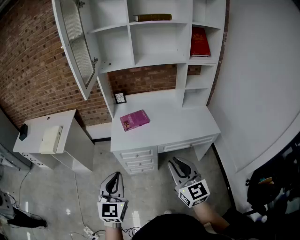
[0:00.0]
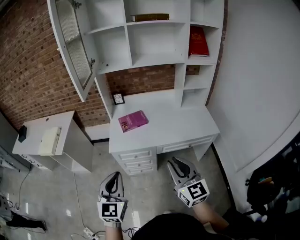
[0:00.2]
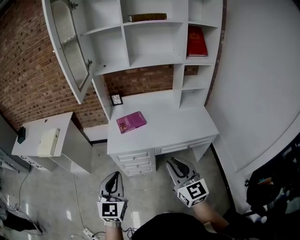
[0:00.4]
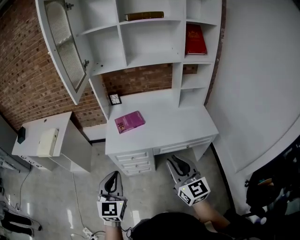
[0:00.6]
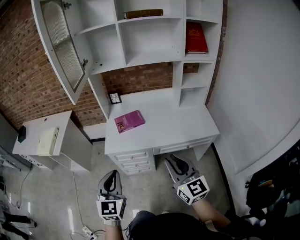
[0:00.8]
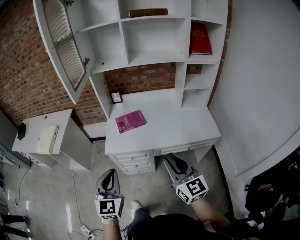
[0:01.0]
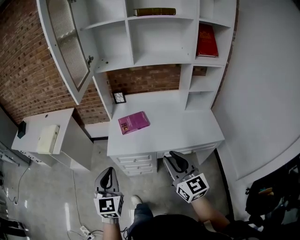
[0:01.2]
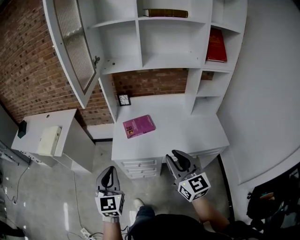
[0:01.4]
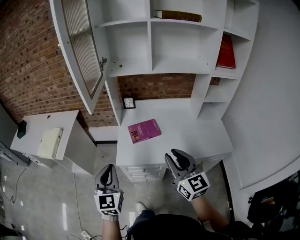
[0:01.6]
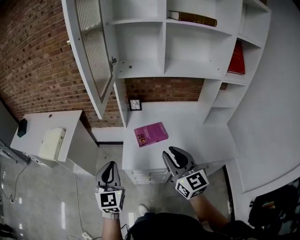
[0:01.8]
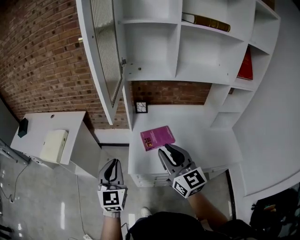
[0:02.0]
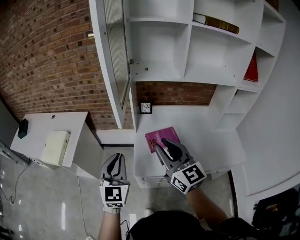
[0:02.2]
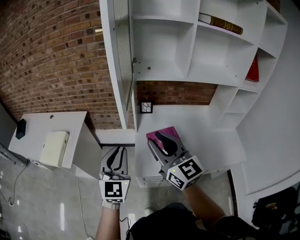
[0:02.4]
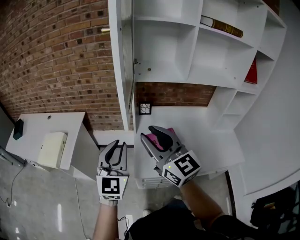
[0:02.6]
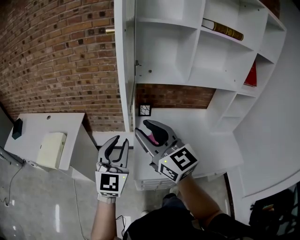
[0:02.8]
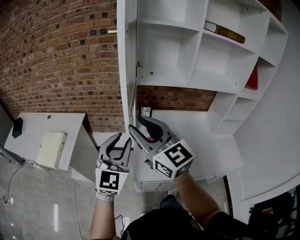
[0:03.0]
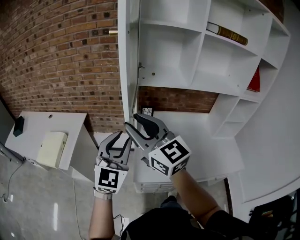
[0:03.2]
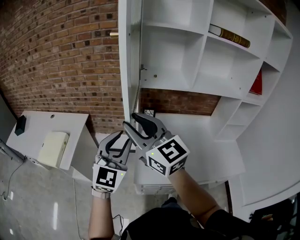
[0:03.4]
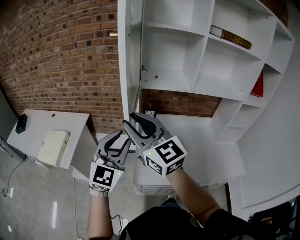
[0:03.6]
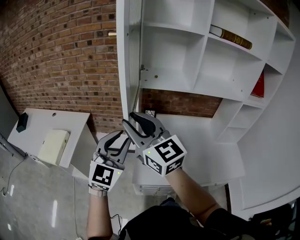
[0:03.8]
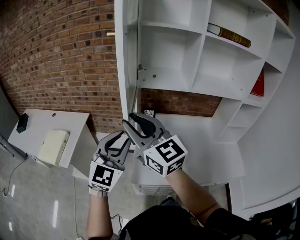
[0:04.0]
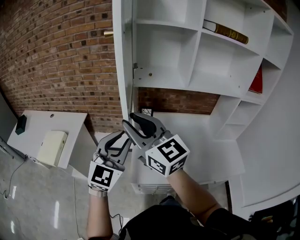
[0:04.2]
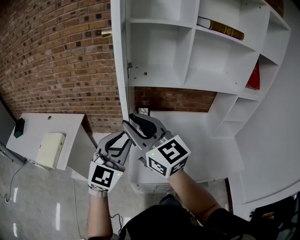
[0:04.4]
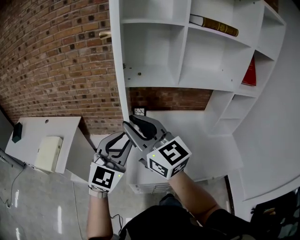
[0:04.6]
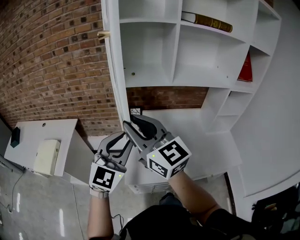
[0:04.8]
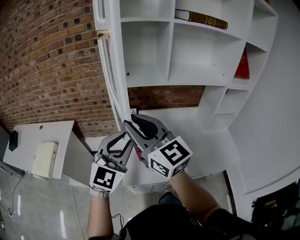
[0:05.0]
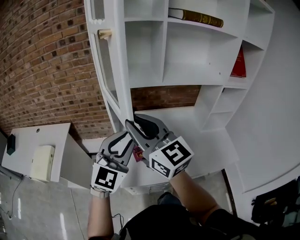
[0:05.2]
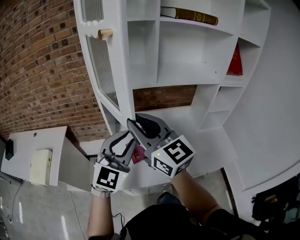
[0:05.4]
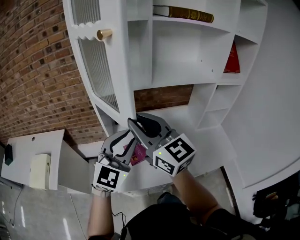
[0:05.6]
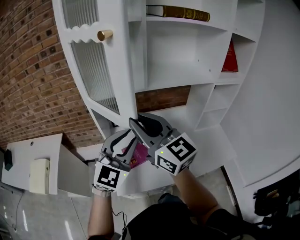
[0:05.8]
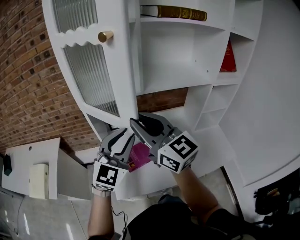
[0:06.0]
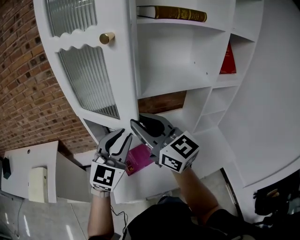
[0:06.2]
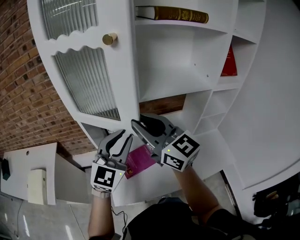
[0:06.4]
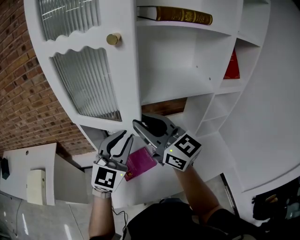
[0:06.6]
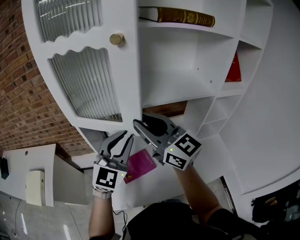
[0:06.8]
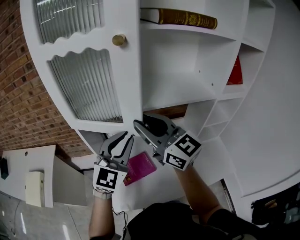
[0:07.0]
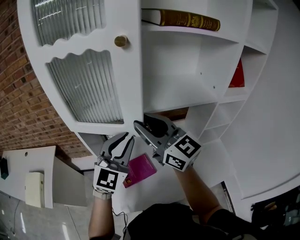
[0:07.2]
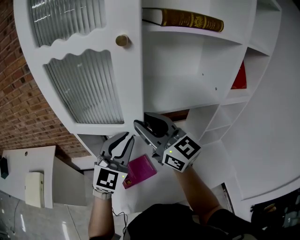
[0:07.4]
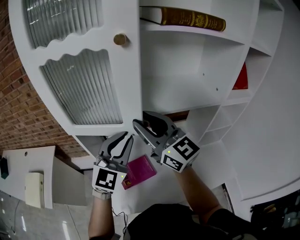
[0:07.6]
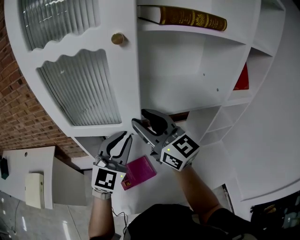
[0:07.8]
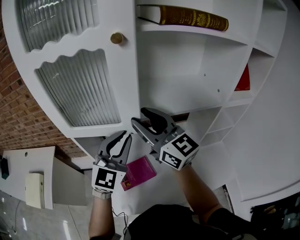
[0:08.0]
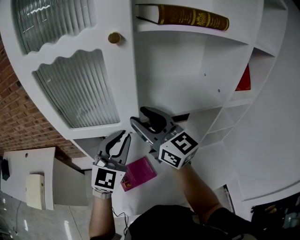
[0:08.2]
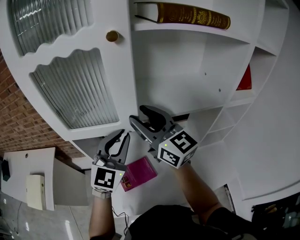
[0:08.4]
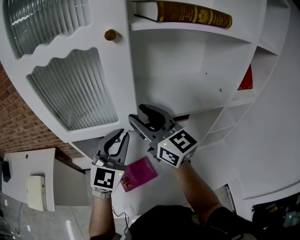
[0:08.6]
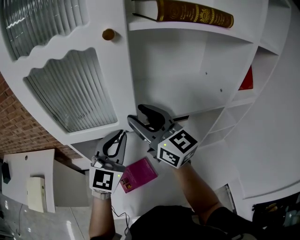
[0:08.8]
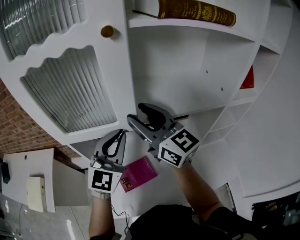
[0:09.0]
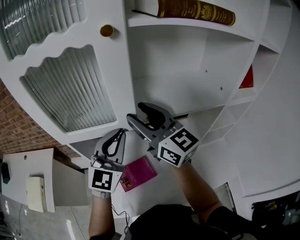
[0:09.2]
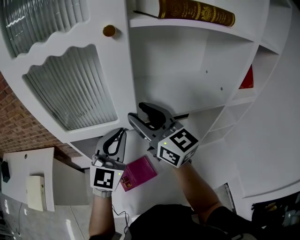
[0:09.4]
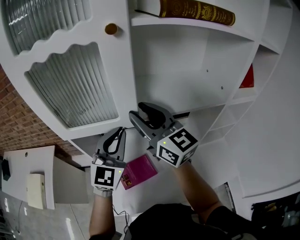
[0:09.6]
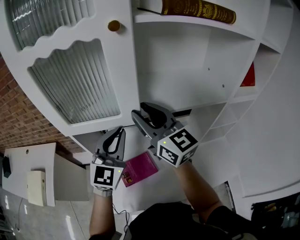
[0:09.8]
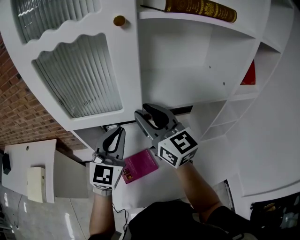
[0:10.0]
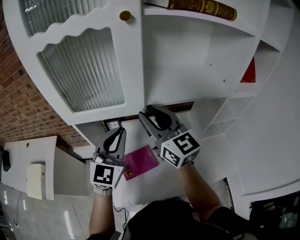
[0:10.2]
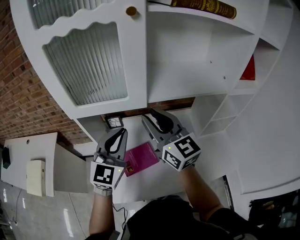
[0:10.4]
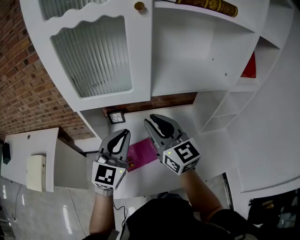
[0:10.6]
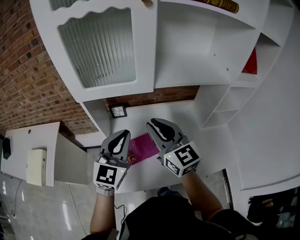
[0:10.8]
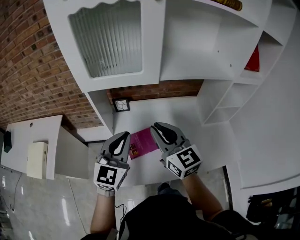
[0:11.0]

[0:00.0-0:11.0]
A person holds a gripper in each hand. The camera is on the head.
0:00.0 to 0:01.6: Both grippers move forward, some 20 cm.
0:01.6 to 0:03.2: The right gripper shifts about 40 cm to the left, forward and upward, and changes its angle by about 20 degrees. Meanwhile the left gripper is displaced forward and upward by approximately 25 cm, rotates approximately 20 degrees, and opens its fingers.
0:03.2 to 0:04.8: The two grippers go about 10 cm to the right.
0:04.8 to 0:06.2: The left gripper goes approximately 15 cm forward and to the right. The right gripper shifts about 20 cm to the right and forward.
0:06.2 to 0:07.8: The left gripper moves forward, about 10 cm; the right gripper is displaced forward and to the right by about 15 cm.
0:07.8 to 0:09.4: There are only small adjustments of the grippers.
0:09.4 to 0:11.0: The right gripper moves backward and downward, approximately 20 cm, and closes. The left gripper shifts about 20 cm backward, downward and to the left.

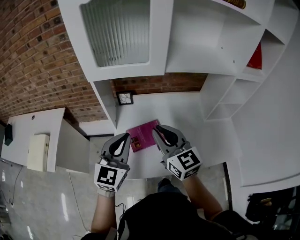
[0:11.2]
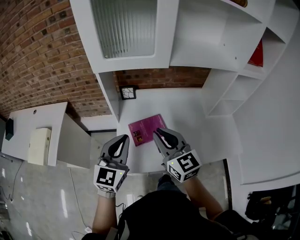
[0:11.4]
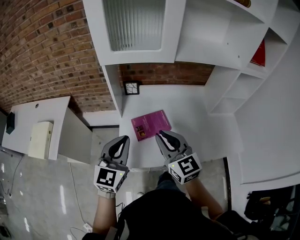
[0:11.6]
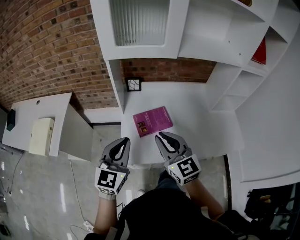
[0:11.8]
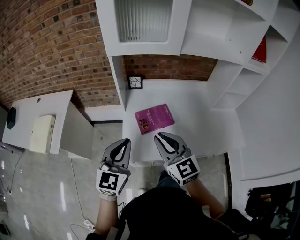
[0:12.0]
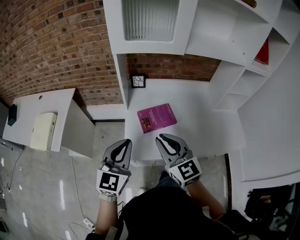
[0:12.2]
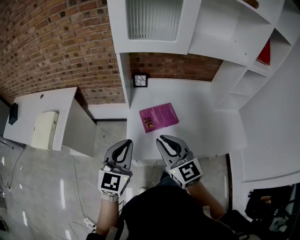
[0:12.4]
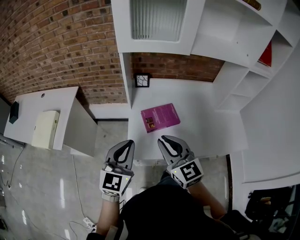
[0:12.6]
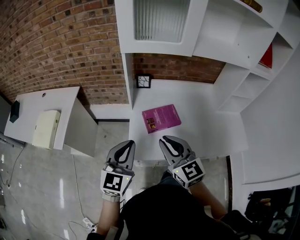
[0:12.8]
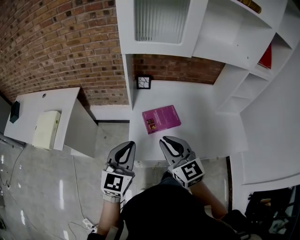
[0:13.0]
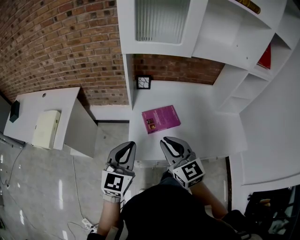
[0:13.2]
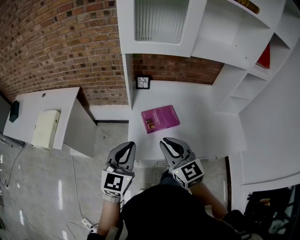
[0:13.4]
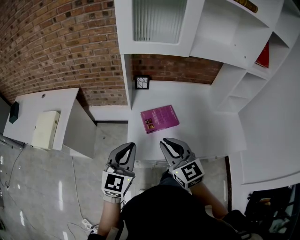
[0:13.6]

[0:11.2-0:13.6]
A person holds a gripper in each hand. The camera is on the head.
0:11.2 to 0:12.4: The grippers both shift backward, to the left and downward by about 15 cm.
0:12.4 to 0:13.6: The grippers make only small movements.

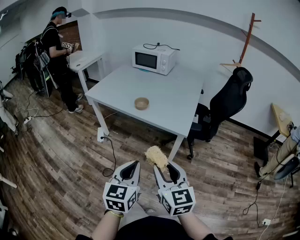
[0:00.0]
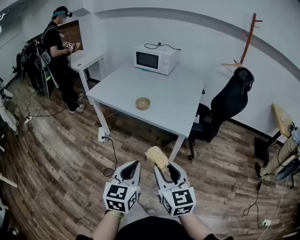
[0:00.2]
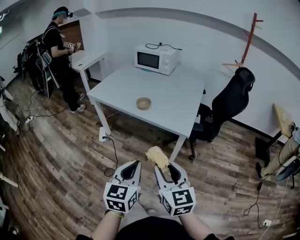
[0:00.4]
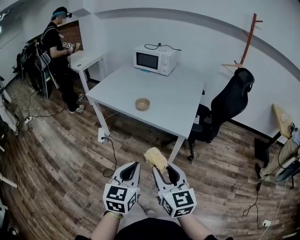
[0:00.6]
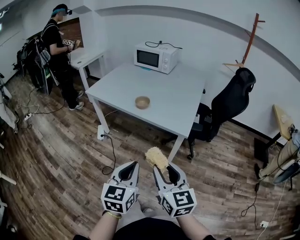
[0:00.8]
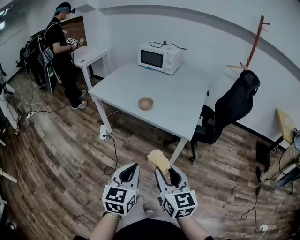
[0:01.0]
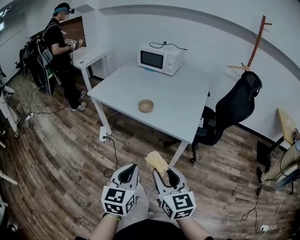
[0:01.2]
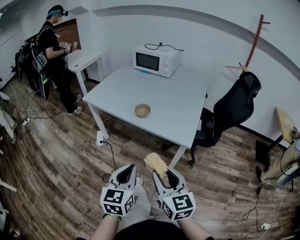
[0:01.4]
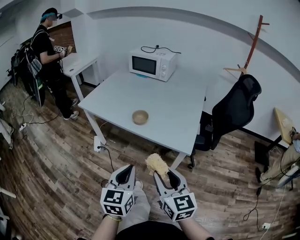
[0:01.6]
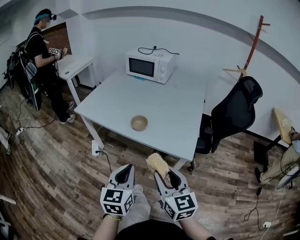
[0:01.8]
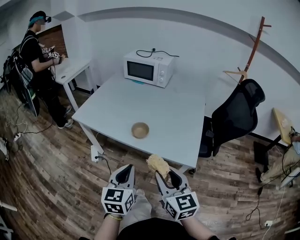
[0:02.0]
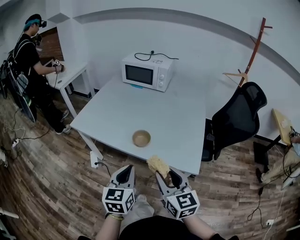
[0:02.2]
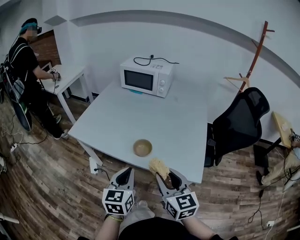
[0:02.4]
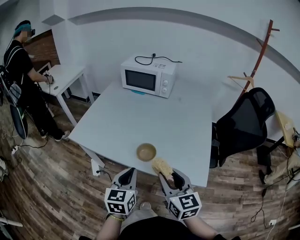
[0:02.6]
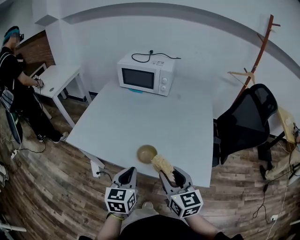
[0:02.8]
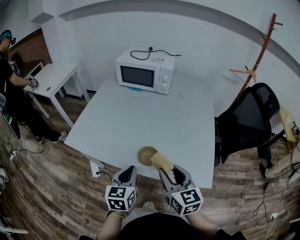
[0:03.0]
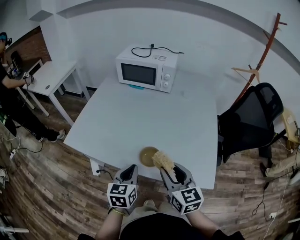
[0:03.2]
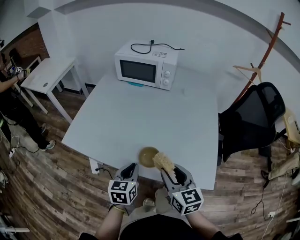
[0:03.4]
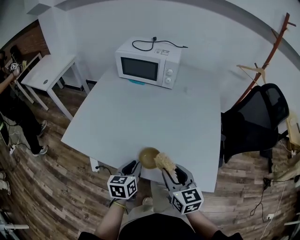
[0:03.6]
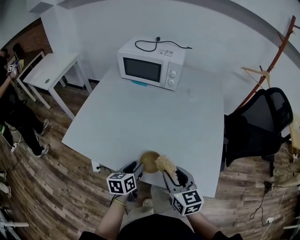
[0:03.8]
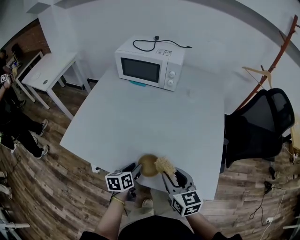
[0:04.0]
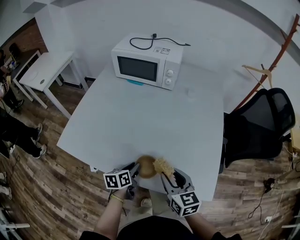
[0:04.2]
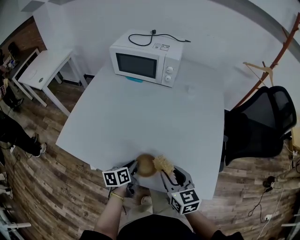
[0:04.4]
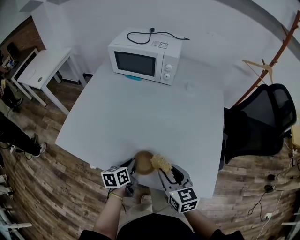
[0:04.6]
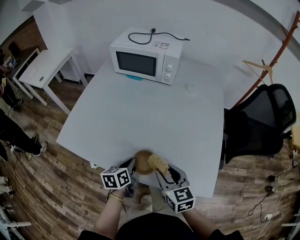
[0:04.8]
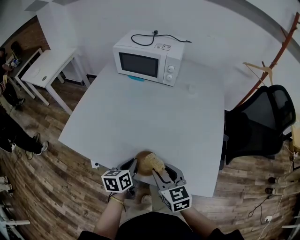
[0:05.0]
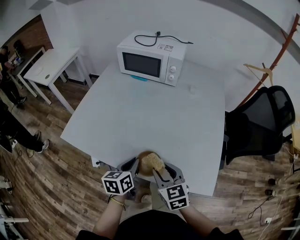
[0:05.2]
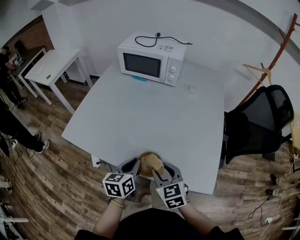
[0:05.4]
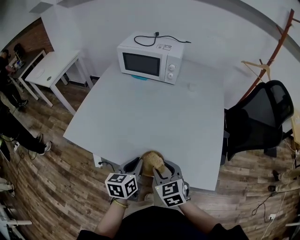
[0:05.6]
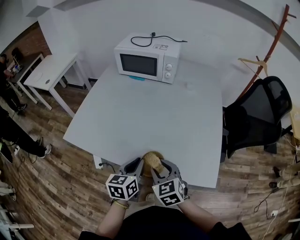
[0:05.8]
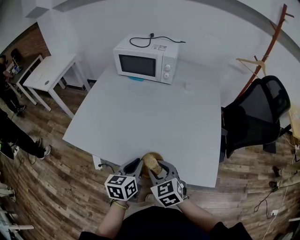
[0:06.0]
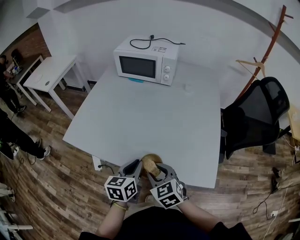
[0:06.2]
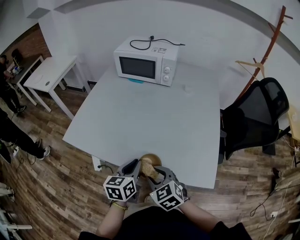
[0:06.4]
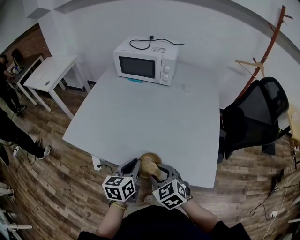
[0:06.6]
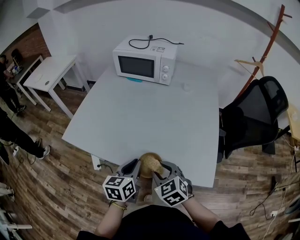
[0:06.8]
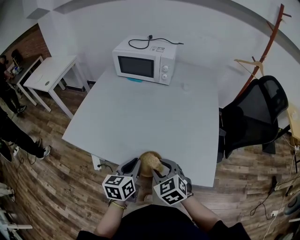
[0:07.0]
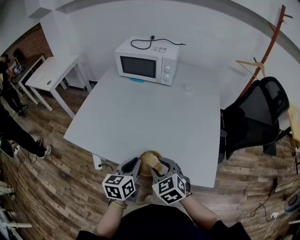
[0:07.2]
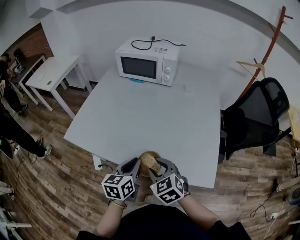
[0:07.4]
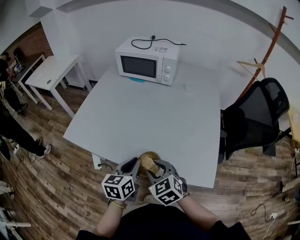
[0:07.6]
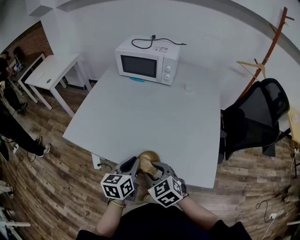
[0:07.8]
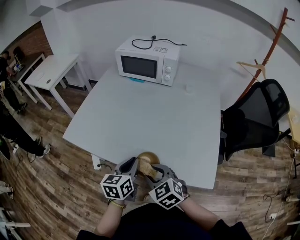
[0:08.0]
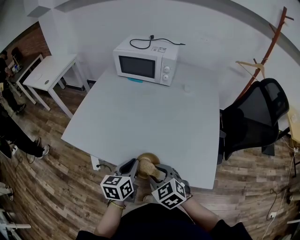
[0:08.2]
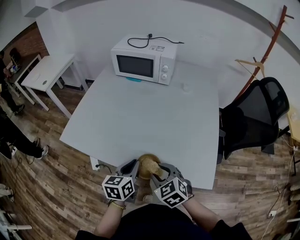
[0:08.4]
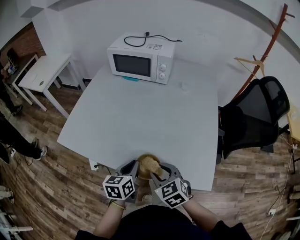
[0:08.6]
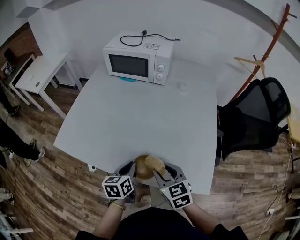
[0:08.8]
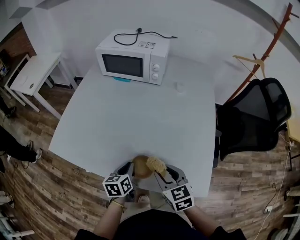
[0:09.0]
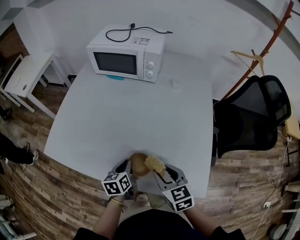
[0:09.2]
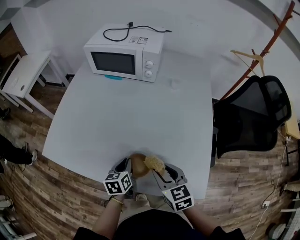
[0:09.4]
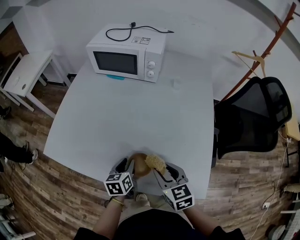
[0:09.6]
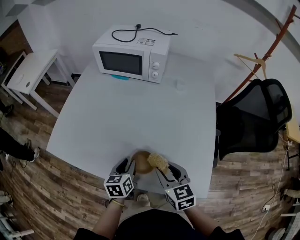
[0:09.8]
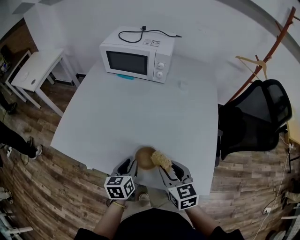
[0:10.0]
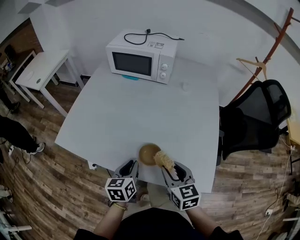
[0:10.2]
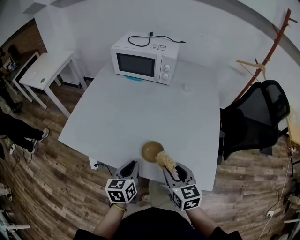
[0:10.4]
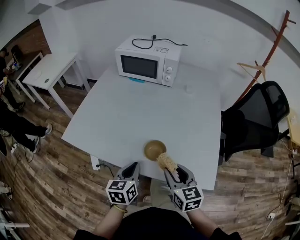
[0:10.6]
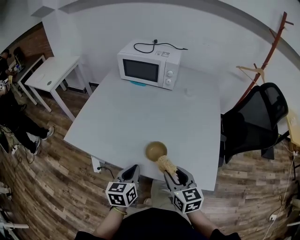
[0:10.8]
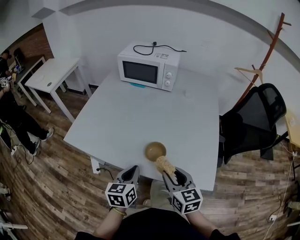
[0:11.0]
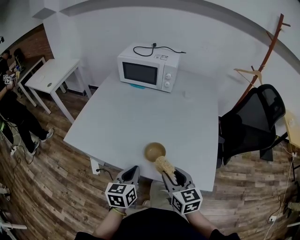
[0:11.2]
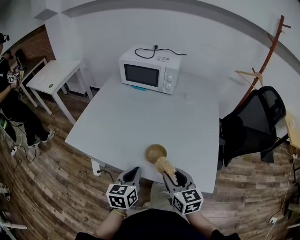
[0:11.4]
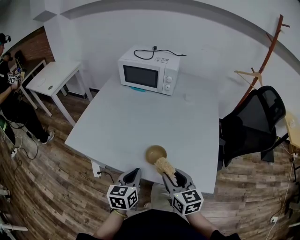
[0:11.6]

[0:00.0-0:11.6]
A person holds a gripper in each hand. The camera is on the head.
0:00.0 to 0:01.4: The two grippers go about 5 cm forward.
0:01.4 to 0:02.8: The grippers both shift forward by approximately 35 cm.
0:02.8 to 0:04.4: The left gripper heads downward and forward, covering approximately 20 cm, turns by approximately 40 degrees, and opens and closes again; the right gripper is displaced forward and downward by some 15 cm.
0:04.4 to 0:05.8: The right gripper goes about 5 cm to the left, and changes its angle by approximately 20 degrees; the left gripper travels upward and backward by some 15 cm, and rotates approximately 20 degrees.
0:05.8 to 0:07.2: The grippers stay close to where they were, moving slightly.
0:07.2 to 0:08.8: The left gripper heads downward, covering approximately 5 cm; the right gripper moves some 5 cm.
0:10.2 to 0:11.6: The right gripper changes place by some 5 cm. Meanwhile the left gripper travels backward by about 5 cm.
